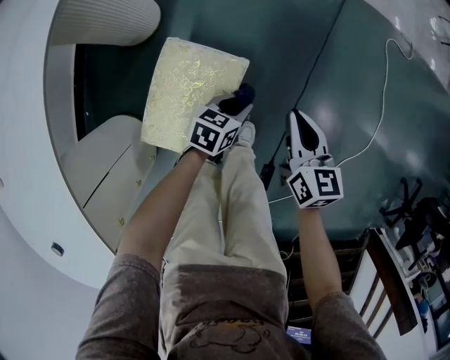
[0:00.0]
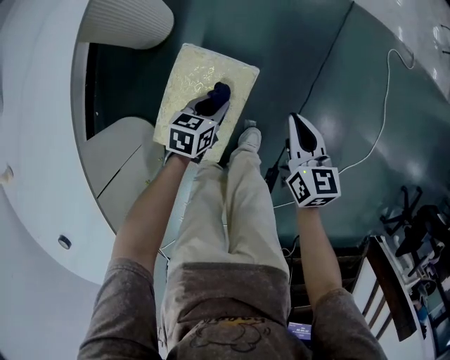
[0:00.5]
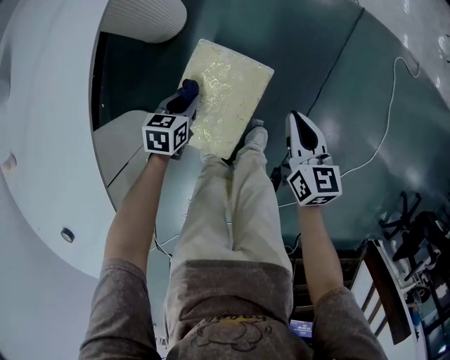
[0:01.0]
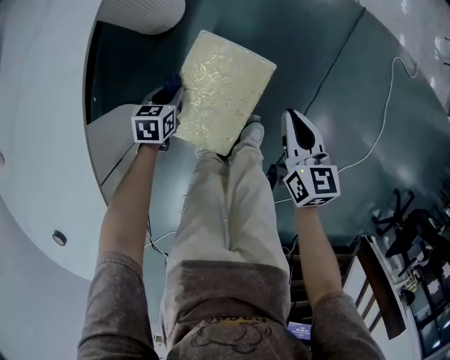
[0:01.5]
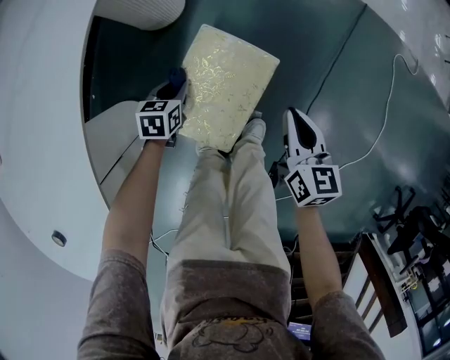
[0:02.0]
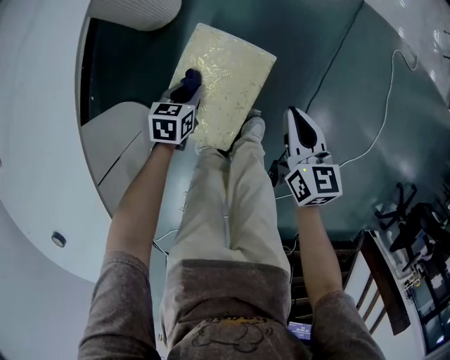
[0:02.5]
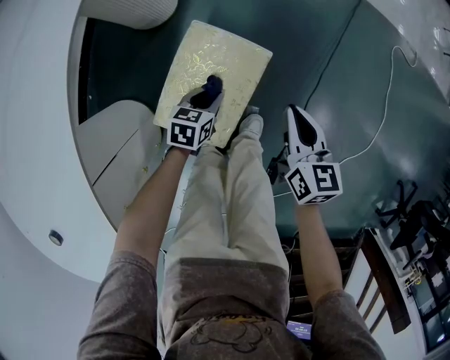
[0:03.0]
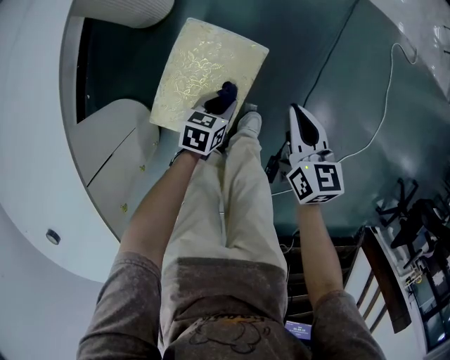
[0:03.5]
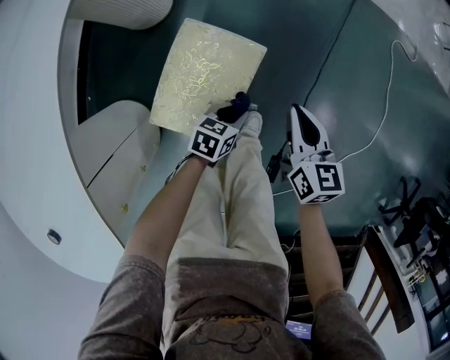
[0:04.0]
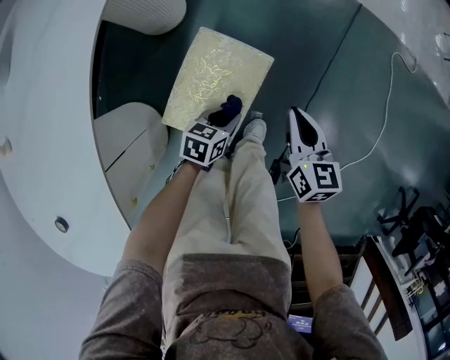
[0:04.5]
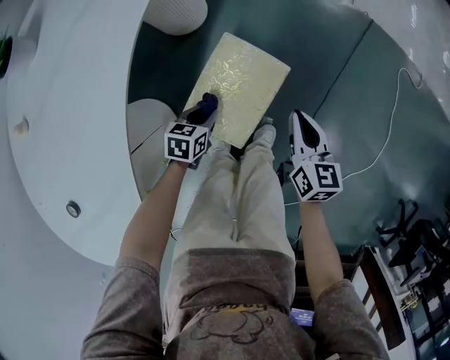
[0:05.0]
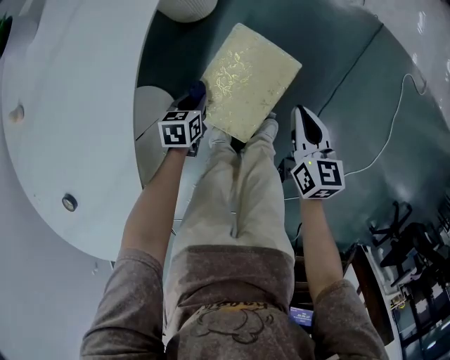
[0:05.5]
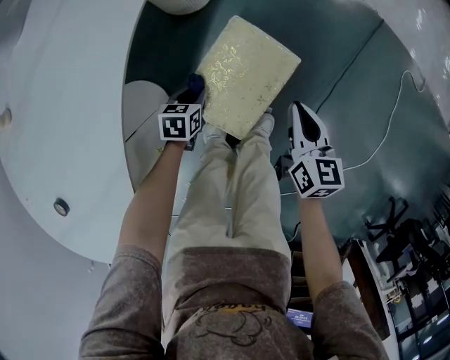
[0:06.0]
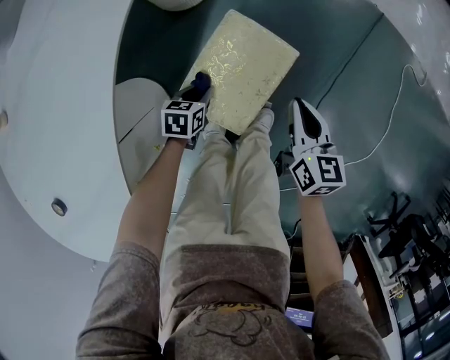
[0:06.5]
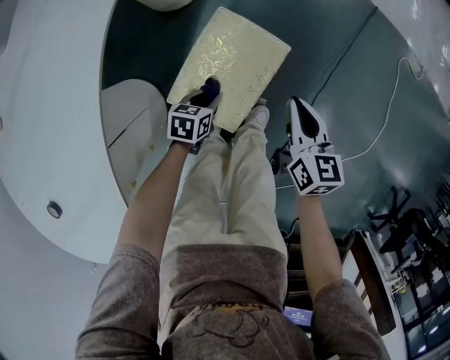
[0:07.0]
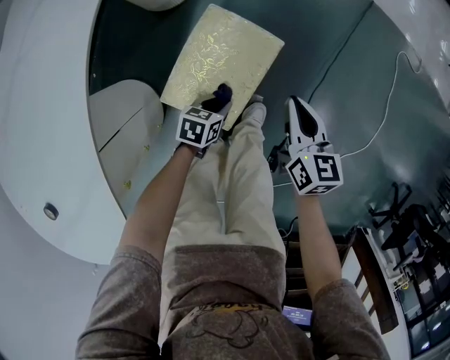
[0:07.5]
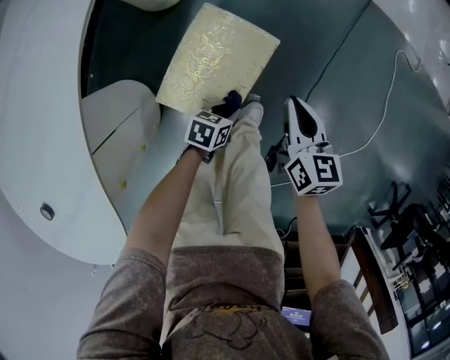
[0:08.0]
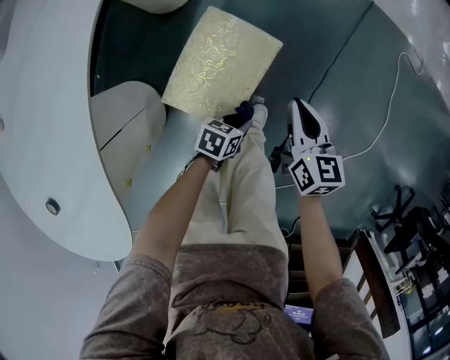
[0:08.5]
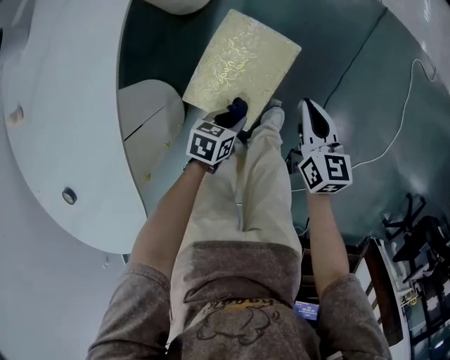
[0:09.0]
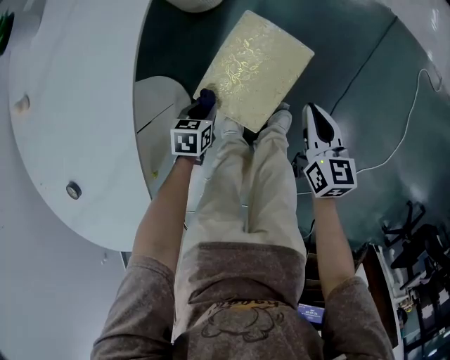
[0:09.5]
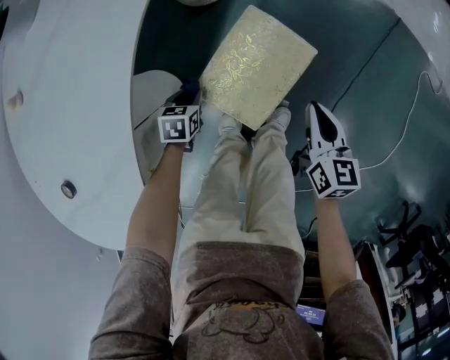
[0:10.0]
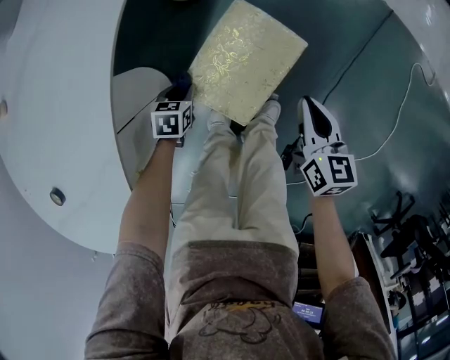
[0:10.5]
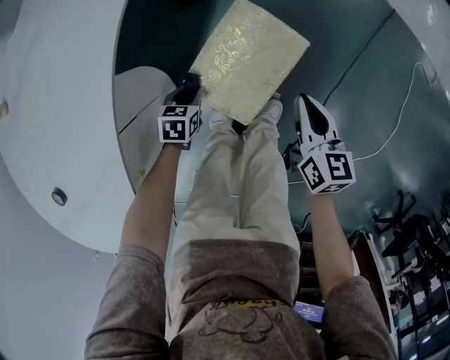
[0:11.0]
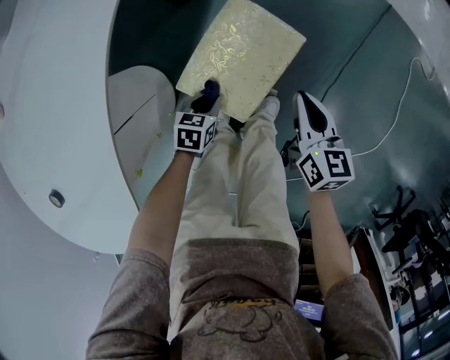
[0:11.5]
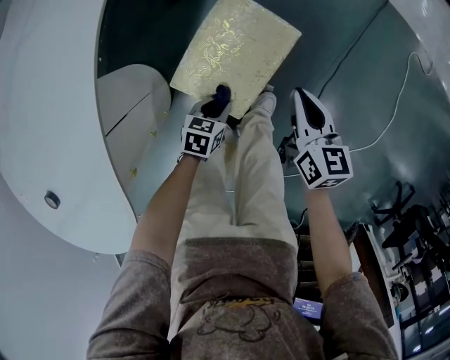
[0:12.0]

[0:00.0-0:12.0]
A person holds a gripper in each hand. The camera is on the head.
0:00.0 to 0:02.0: The left gripper moves to the left, about 25 cm, and rotates roughly 30 degrees, while the right gripper moves to the left, approximately 10 cm.
0:02.0 to 0:04.0: The right gripper shifts some 5 cm to the right. Meanwhile the left gripper shifts some 25 cm to the right, and rotates roughly 30 degrees.
0:04.0 to 0:06.0: The left gripper travels to the left by some 25 cm, and swivels approximately 30 degrees; the right gripper heads to the left, covering roughly 10 cm.
0:06.0 to 0:08.0: The right gripper goes some 5 cm to the right; the left gripper travels to the right by about 20 cm, and rotates some 20 degrees.
0:08.0 to 0:10.0: The left gripper shifts by some 25 cm, and rotates some 30 degrees.
0:10.0 to 0:12.0: The left gripper shifts roughly 15 cm to the right.

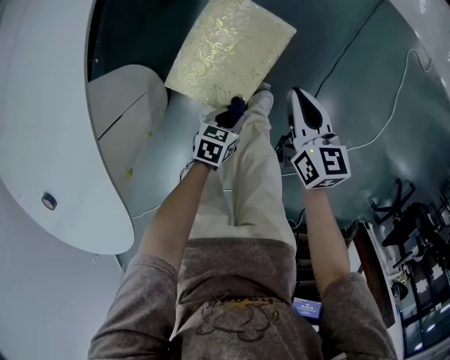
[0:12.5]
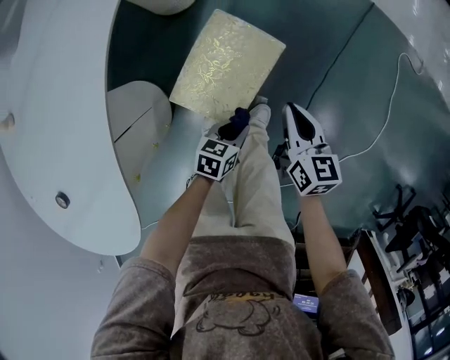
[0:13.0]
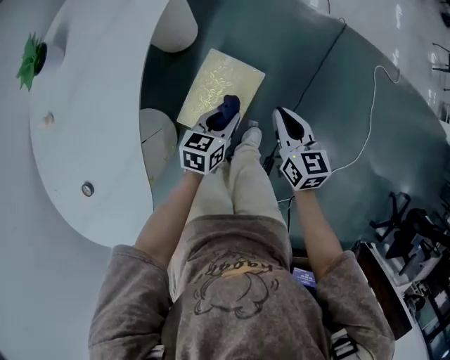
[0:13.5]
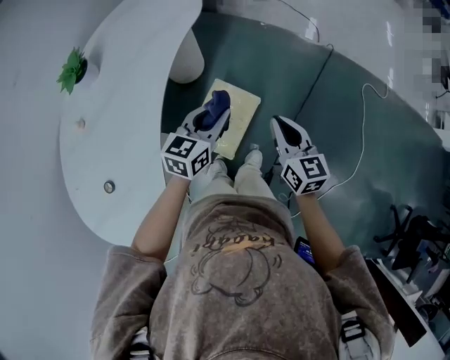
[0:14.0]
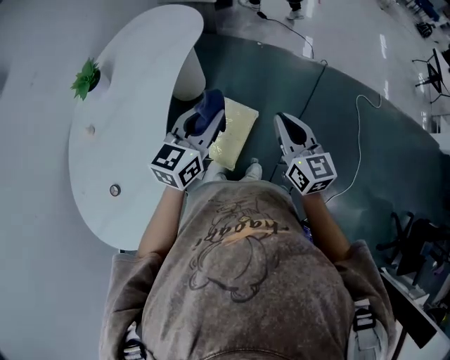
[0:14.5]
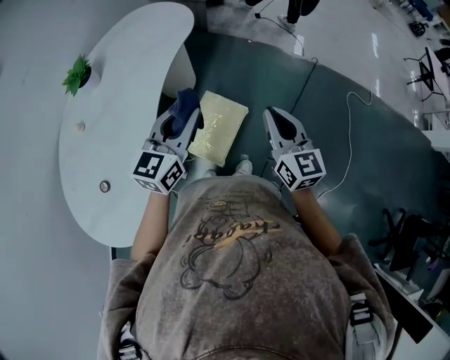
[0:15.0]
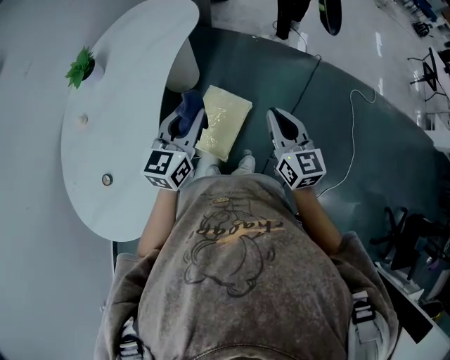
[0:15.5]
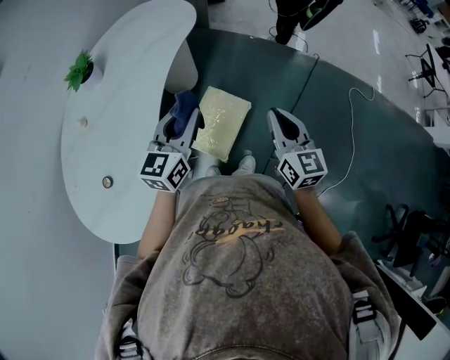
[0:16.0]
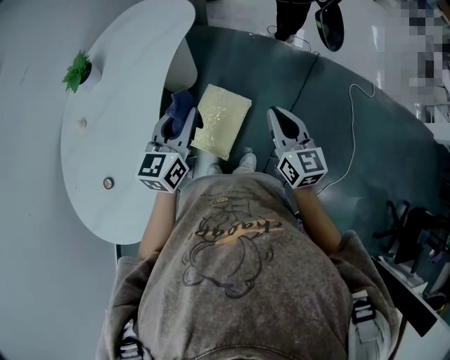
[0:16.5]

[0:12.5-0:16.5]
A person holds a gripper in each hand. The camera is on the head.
0:12.5 to 0:14.5: The right gripper is displaced upward by about 40 cm, and rotates some 30 degrees, while the left gripper shifts about 60 cm upward, and angles its fingers upward, by approximately 40 degrees.
0:14.5 to 0:16.5: The left gripper goes roughly 5 cm to the left.

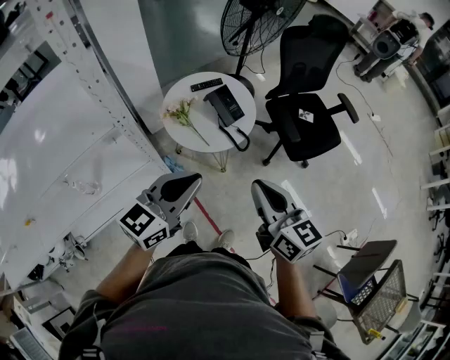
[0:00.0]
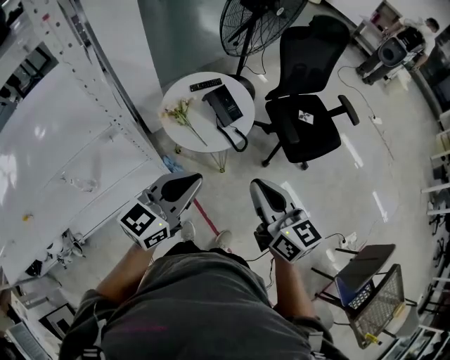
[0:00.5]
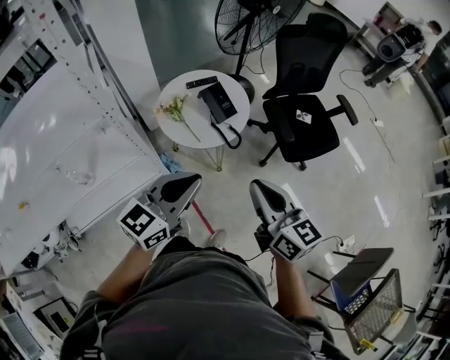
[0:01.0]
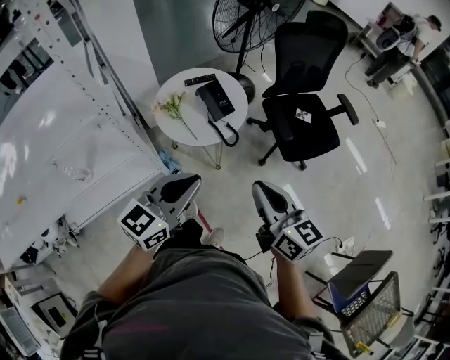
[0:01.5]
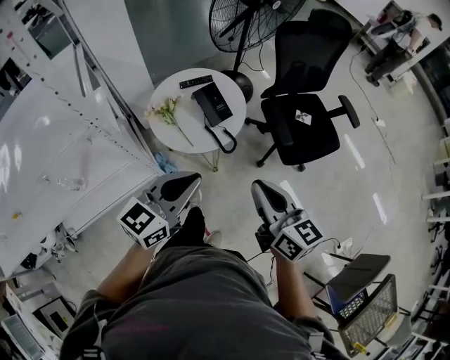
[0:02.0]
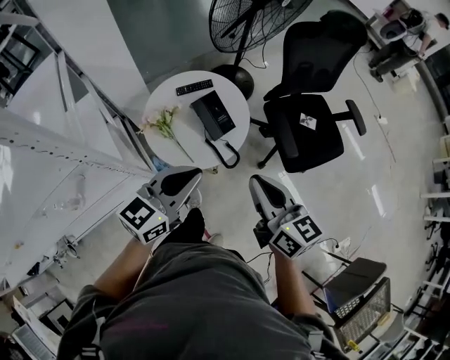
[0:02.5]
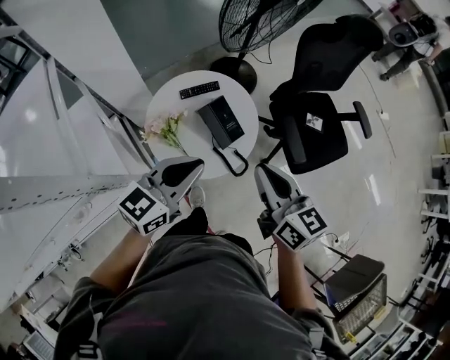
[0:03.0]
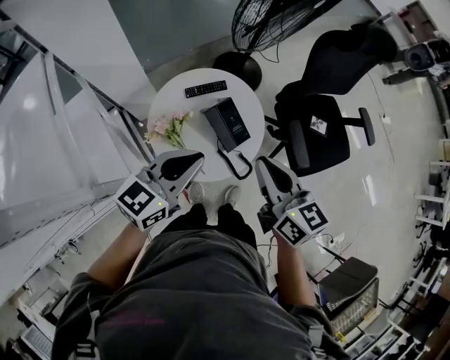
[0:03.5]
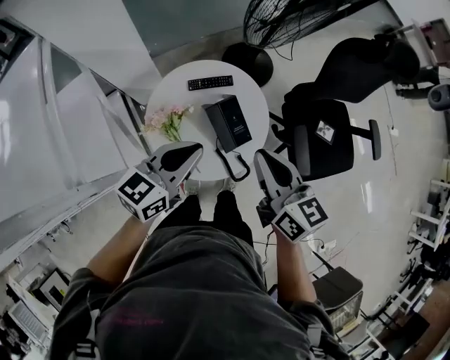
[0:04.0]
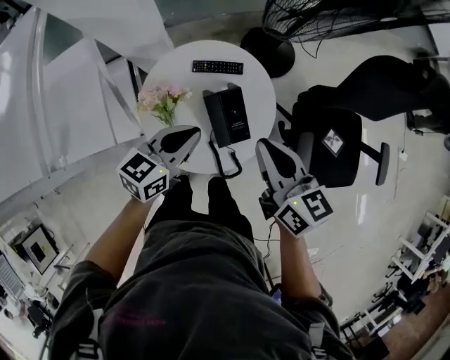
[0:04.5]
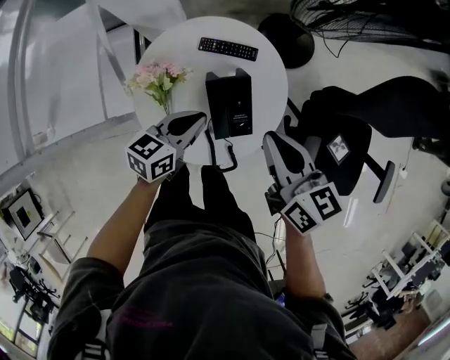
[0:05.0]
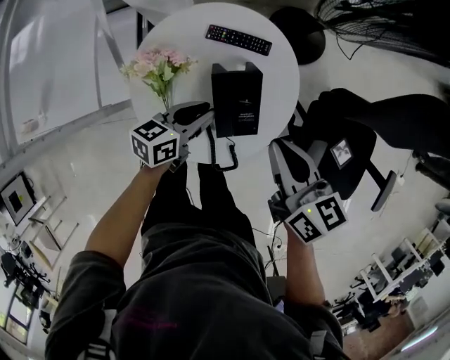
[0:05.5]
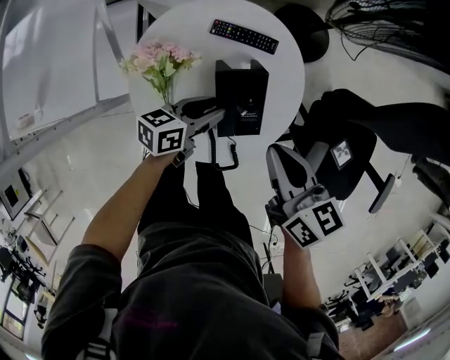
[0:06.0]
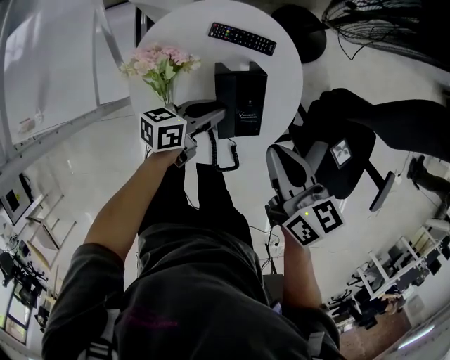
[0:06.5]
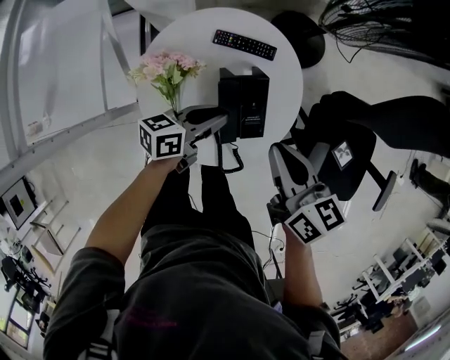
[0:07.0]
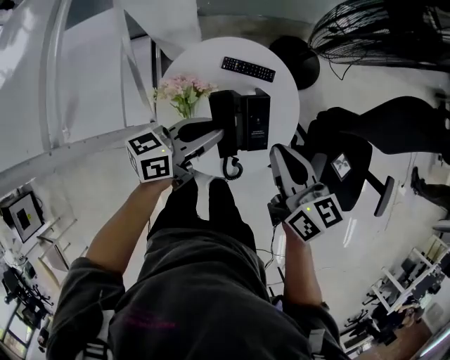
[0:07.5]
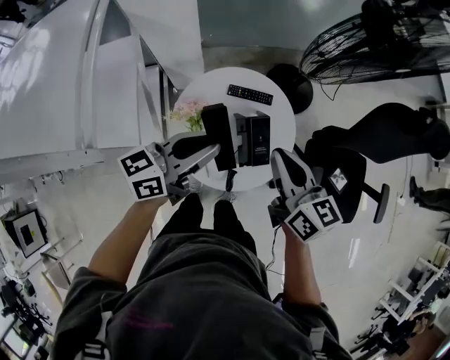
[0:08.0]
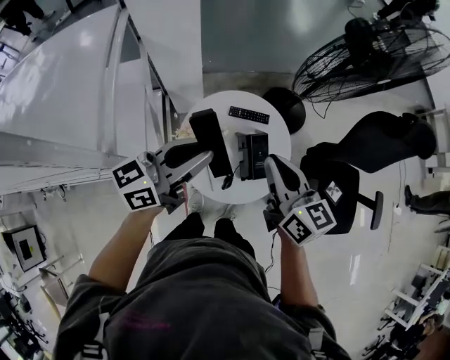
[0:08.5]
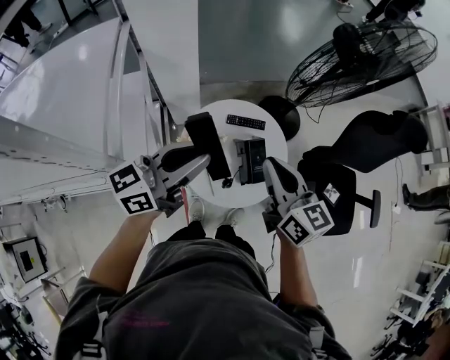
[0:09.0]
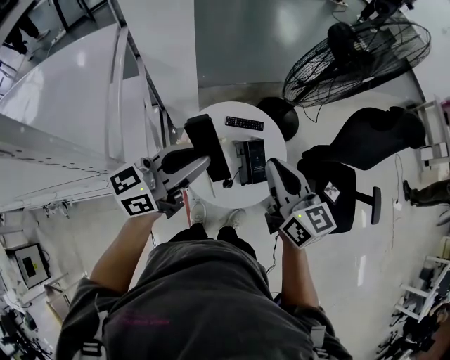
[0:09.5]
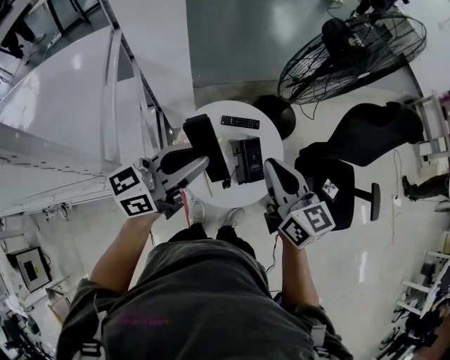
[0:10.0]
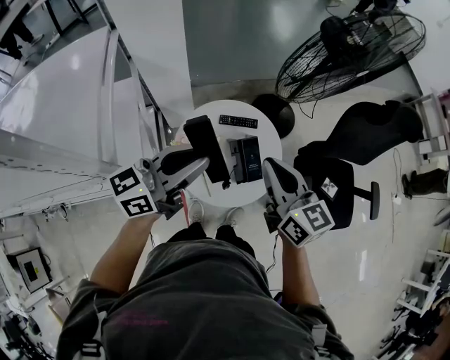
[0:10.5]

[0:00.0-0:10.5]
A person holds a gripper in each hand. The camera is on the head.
0:00.0 to 0:02.0: Both grippers move to the right, approximately 10 cm.
0:02.0 to 0:04.0: The grippers both shift forward by about 30 cm.
0:04.0 to 0:06.5: The right gripper goes approximately 15 cm downward, and swivels approximately 30 degrees, while the left gripper goes approximately 30 cm downward, and rotates roughly 40 degrees.
0:06.5 to 0:08.5: The right gripper is displaced upward and to the left by some 20 cm, and turns by about 20 degrees. The left gripper travels upward by some 35 cm, and turns by about 40 degrees.
0:08.5 to 0:10.5: The grippers make only small movements.
